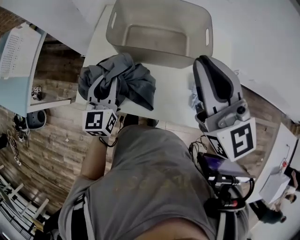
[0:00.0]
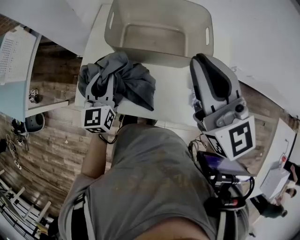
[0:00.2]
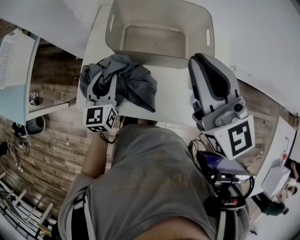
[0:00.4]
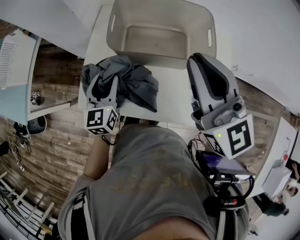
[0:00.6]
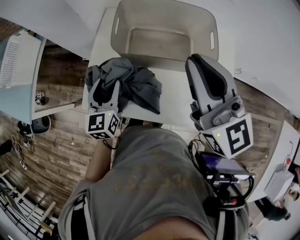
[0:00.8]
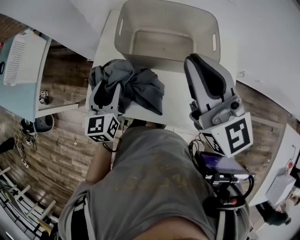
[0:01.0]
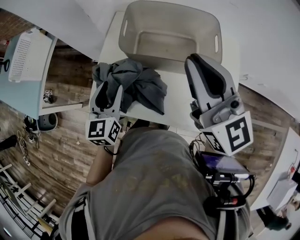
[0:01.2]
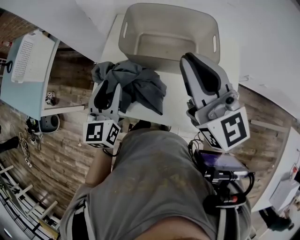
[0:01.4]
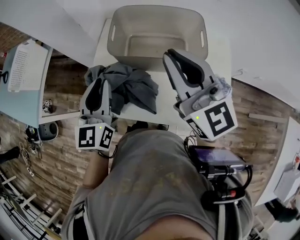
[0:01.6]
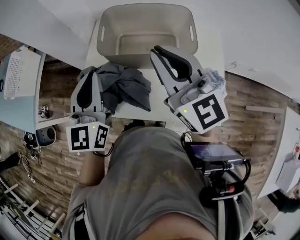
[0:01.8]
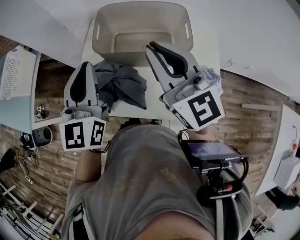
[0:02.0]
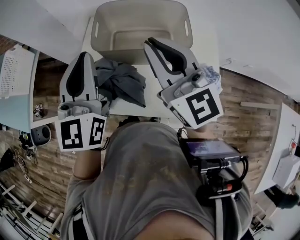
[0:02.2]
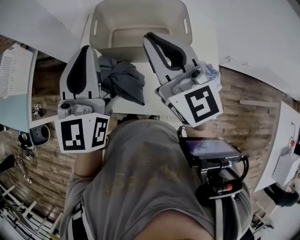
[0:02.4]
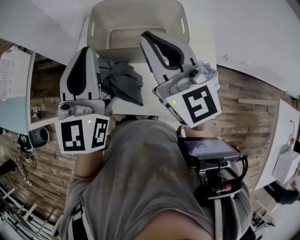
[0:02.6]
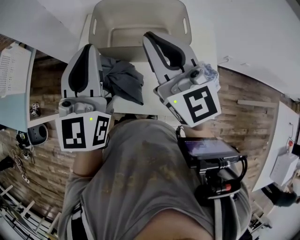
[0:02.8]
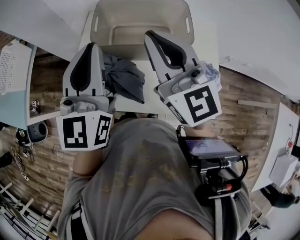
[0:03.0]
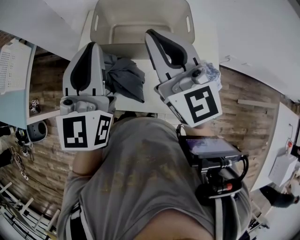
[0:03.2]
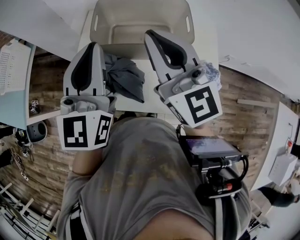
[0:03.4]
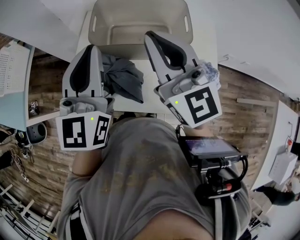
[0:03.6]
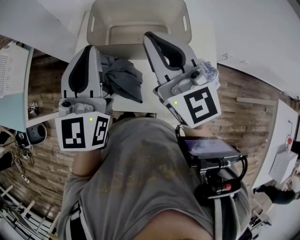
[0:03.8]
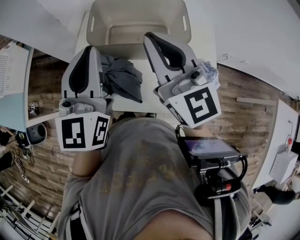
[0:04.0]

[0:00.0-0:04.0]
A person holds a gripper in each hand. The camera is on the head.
0:00.0 to 0:01.4: The left gripper heads upward, covering approximately 5 cm.
0:01.4 to 0:02.6: The left gripper shifts some 15 cm upward and to the right, and closes its fingers.
0:02.6 to 0:04.0: There are only small adjustments of the grippers.

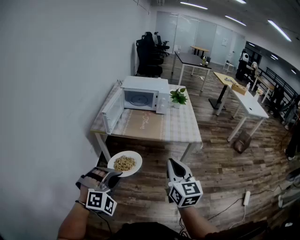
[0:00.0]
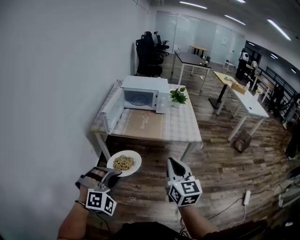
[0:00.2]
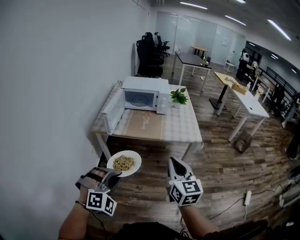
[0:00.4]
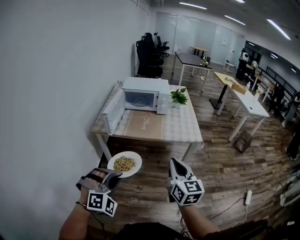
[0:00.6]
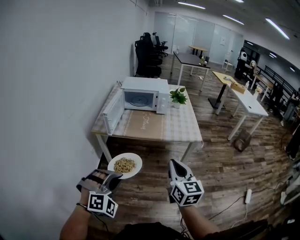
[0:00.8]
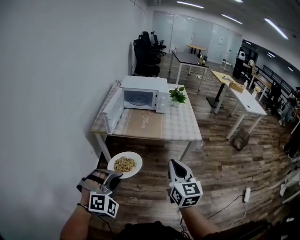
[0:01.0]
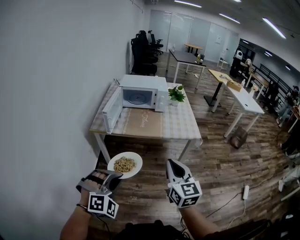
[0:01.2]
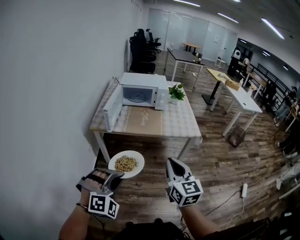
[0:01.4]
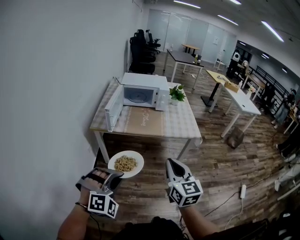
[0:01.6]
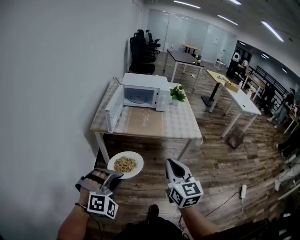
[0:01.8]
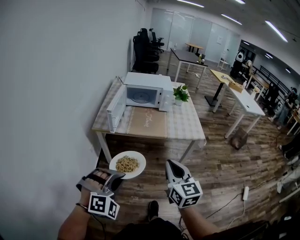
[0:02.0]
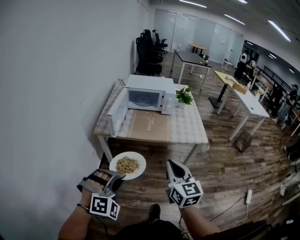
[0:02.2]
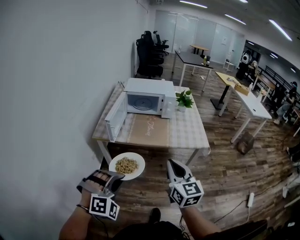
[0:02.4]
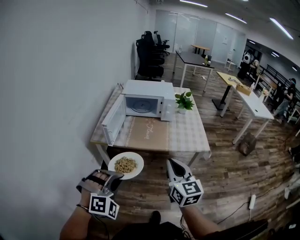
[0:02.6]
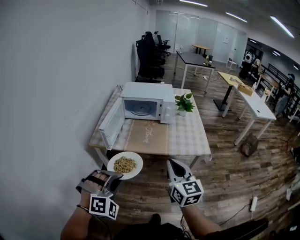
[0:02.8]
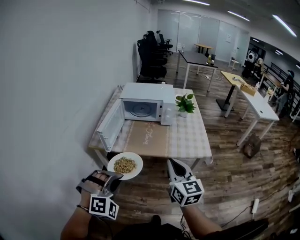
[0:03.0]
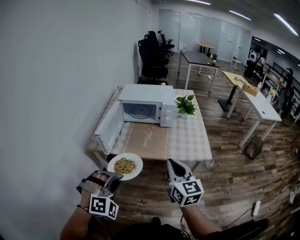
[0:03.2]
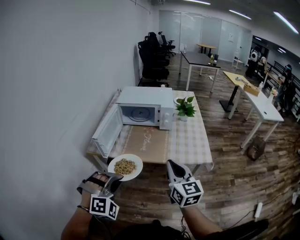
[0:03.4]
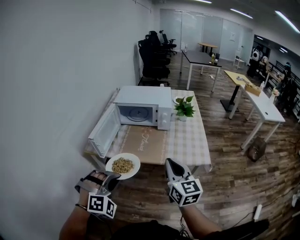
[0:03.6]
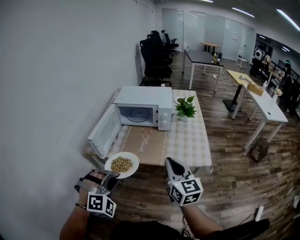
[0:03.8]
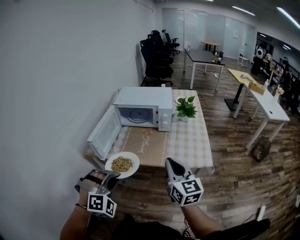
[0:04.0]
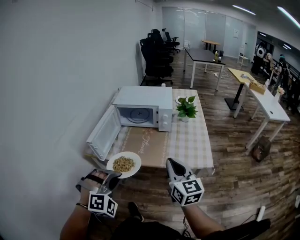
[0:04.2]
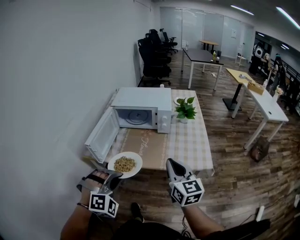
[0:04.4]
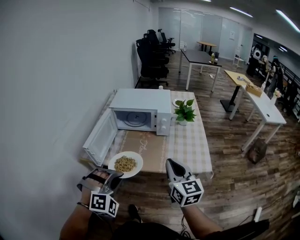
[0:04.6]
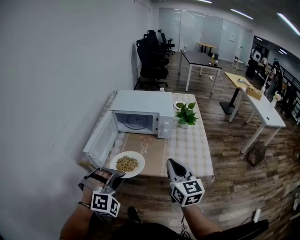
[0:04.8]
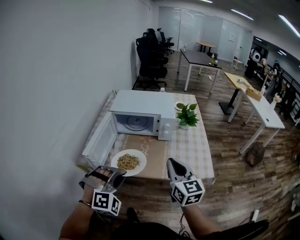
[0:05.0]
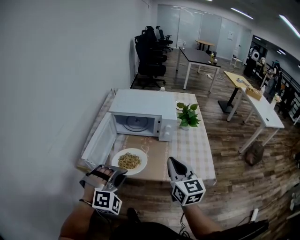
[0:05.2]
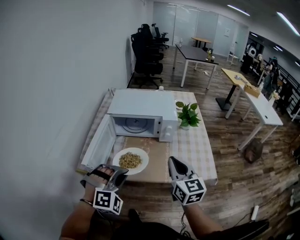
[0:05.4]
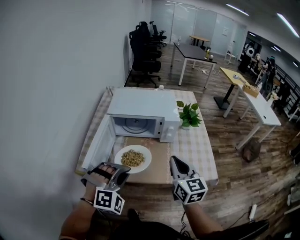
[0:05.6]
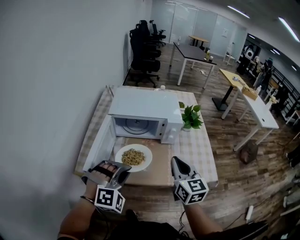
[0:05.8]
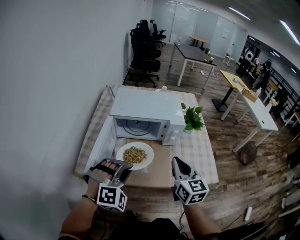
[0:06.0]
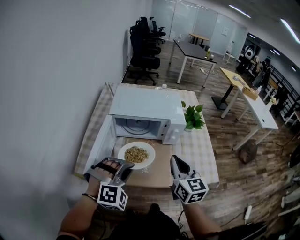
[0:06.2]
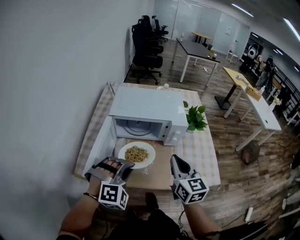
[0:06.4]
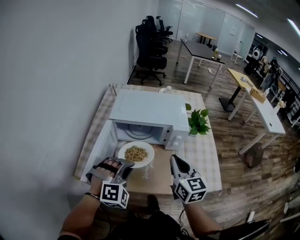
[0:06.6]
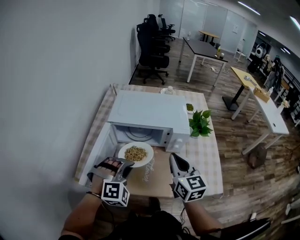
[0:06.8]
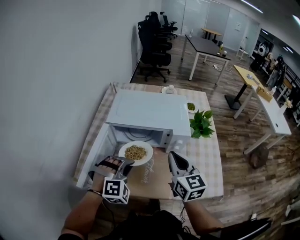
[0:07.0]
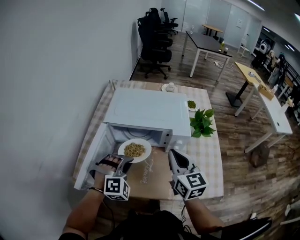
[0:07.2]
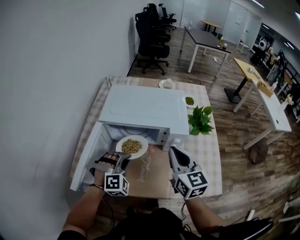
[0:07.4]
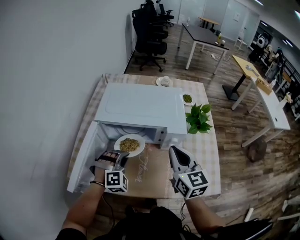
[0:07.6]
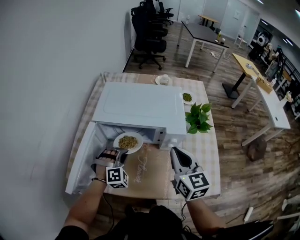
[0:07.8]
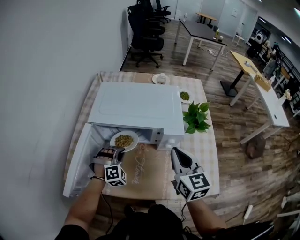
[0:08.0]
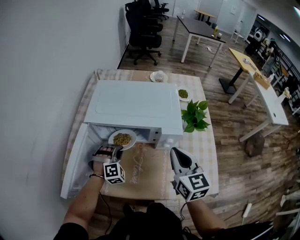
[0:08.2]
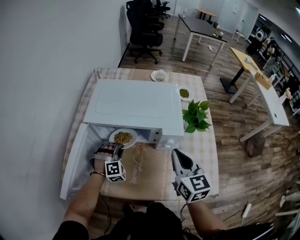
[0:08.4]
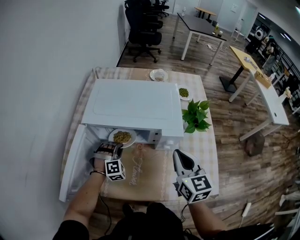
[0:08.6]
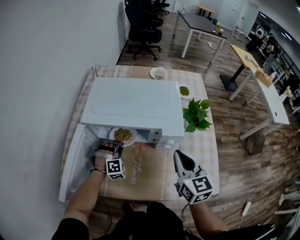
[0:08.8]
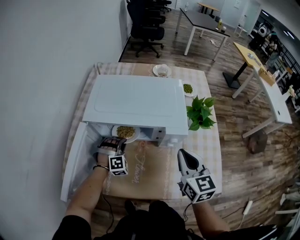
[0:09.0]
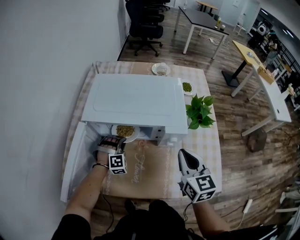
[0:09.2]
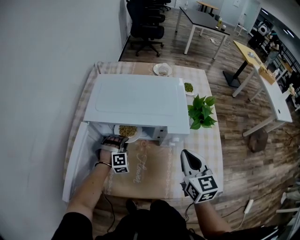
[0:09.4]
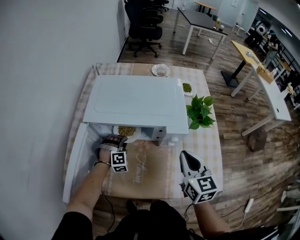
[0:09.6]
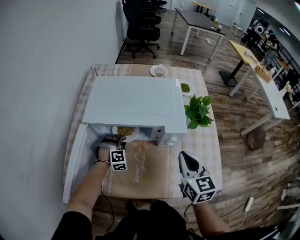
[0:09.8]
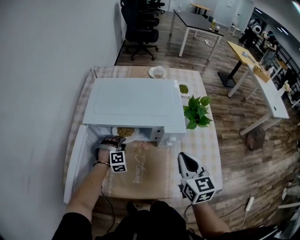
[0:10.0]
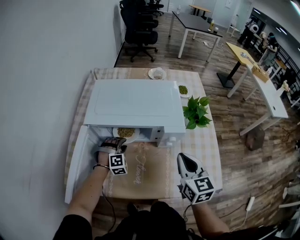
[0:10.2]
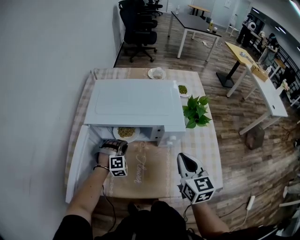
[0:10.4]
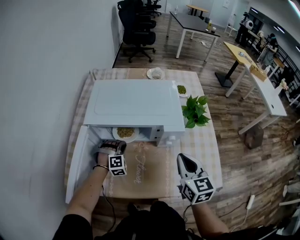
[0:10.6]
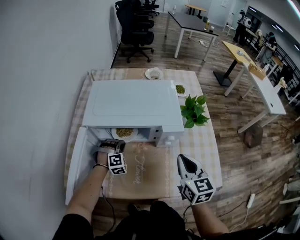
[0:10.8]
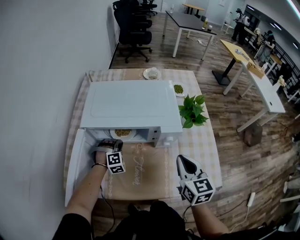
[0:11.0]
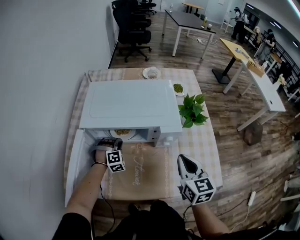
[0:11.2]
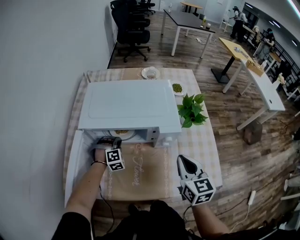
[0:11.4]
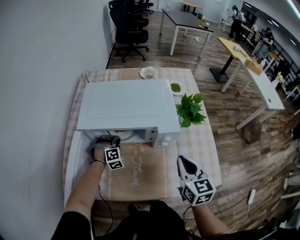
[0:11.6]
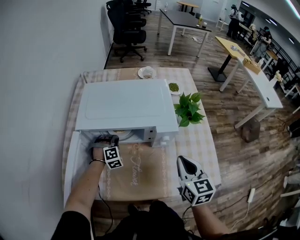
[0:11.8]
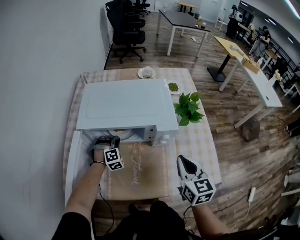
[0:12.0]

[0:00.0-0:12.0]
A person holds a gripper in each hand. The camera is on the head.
0:00.0 to 0:01.6: The grippers both shift to the left by about 5 cm.
0:01.6 to 0:03.0: The two grippers go some 20 cm forward.
0:03.0 to 0:04.4: The grippers both shift forward and to the right by roughly 15 cm.
0:04.4 to 0:06.0: The right gripper moves forward and to the left, about 20 cm. Meanwhile the left gripper is displaced forward by about 20 cm.
0:06.0 to 0:07.6: The right gripper moves forward, roughly 15 cm; the left gripper is displaced forward and downward by some 25 cm.
0:07.6 to 0:09.0: The left gripper travels downward and forward by some 15 cm, while the right gripper goes about 5 cm to the right.
0:09.0 to 0:10.4: The left gripper opens, then closes once more.
0:10.4 to 0:12.0: The grippers make only small movements.

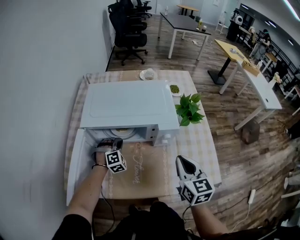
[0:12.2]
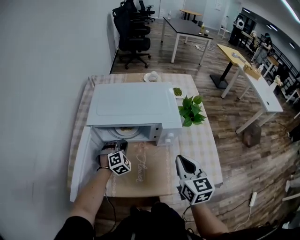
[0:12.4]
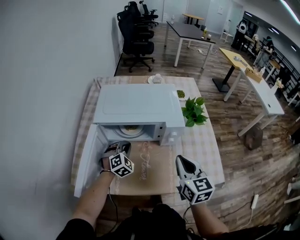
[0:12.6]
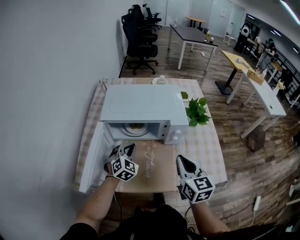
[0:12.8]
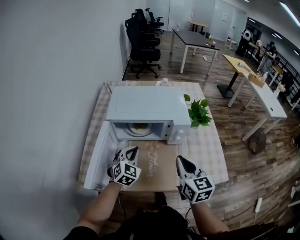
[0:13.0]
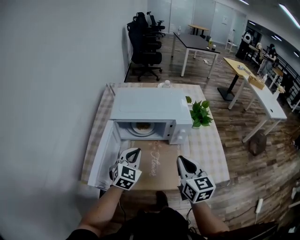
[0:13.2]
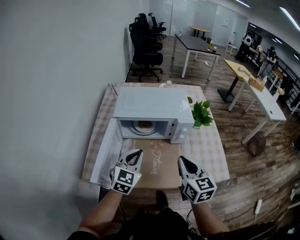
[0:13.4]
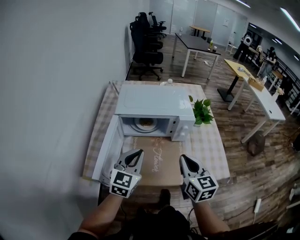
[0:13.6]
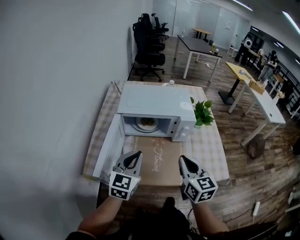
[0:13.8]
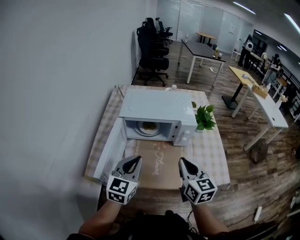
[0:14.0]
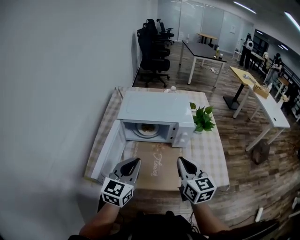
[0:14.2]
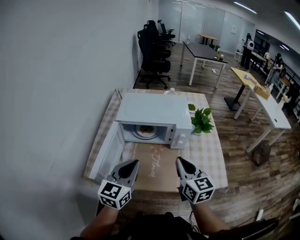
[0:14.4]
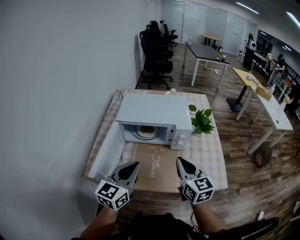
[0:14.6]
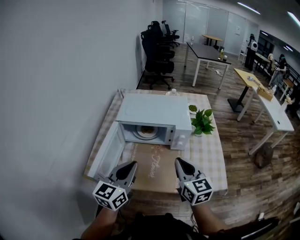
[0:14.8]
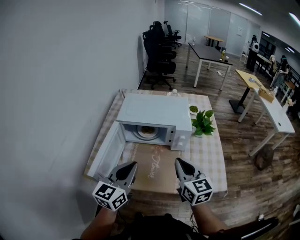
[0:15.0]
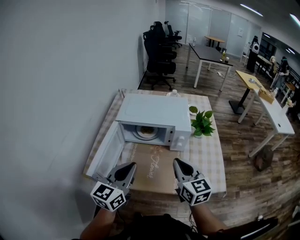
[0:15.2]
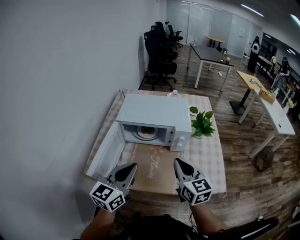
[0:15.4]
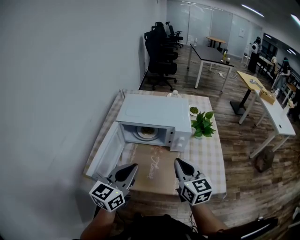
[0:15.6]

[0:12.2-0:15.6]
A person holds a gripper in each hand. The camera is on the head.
0:12.2 to 0:13.8: The left gripper is displaced upward and backward by approximately 30 cm, and twists some 60 degrees counterclockwise, seen from behind. Meanwhile the right gripper goes some 15 cm backward, to the left and upward.
0:13.8 to 0:15.6: The left gripper shifts about 10 cm upward and backward.

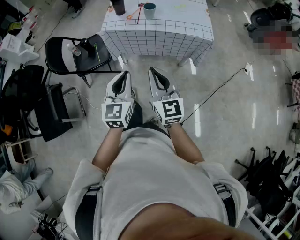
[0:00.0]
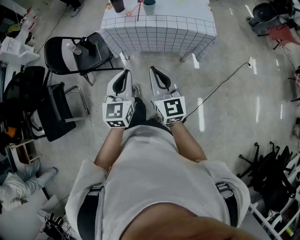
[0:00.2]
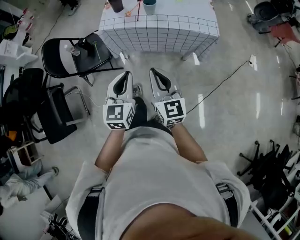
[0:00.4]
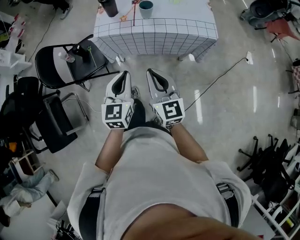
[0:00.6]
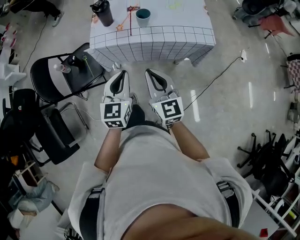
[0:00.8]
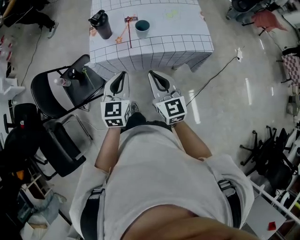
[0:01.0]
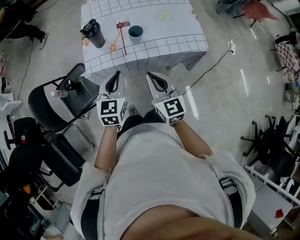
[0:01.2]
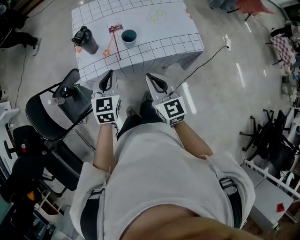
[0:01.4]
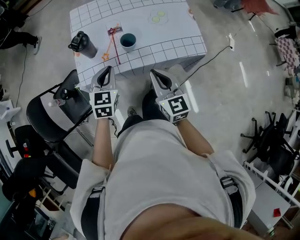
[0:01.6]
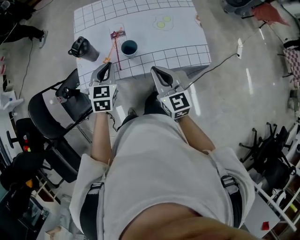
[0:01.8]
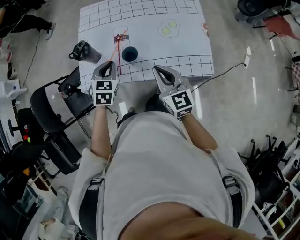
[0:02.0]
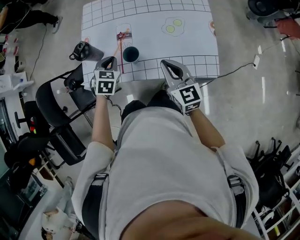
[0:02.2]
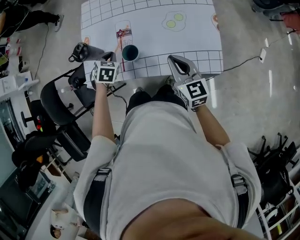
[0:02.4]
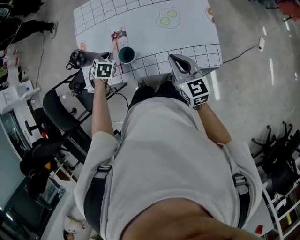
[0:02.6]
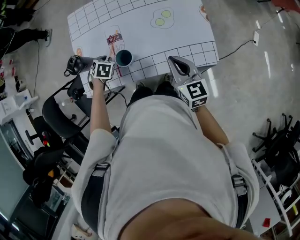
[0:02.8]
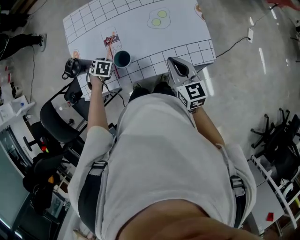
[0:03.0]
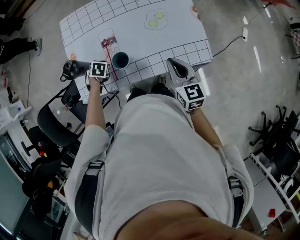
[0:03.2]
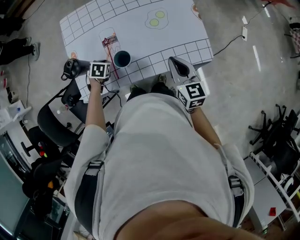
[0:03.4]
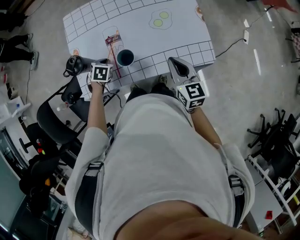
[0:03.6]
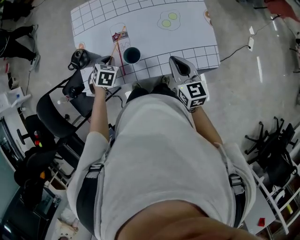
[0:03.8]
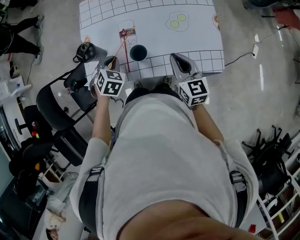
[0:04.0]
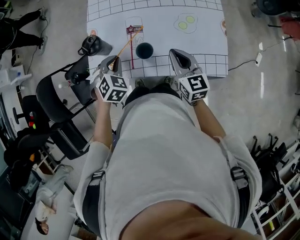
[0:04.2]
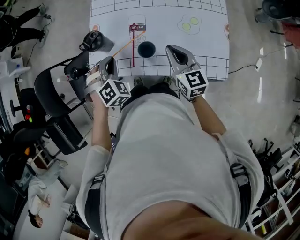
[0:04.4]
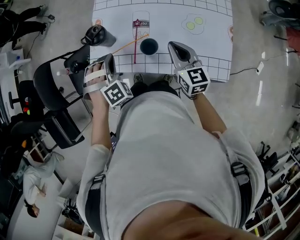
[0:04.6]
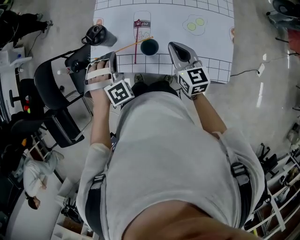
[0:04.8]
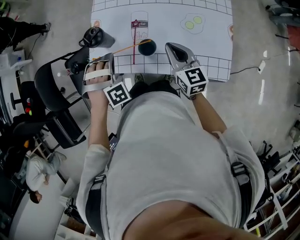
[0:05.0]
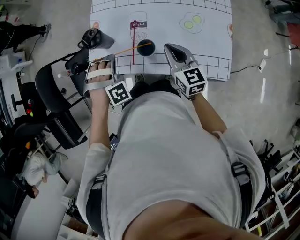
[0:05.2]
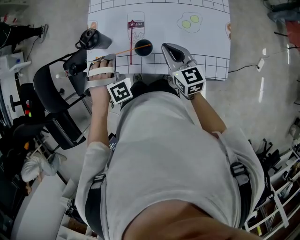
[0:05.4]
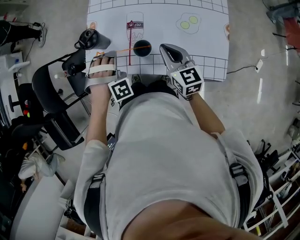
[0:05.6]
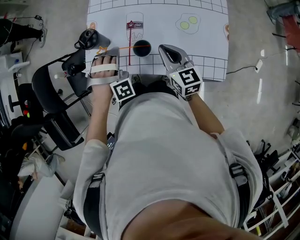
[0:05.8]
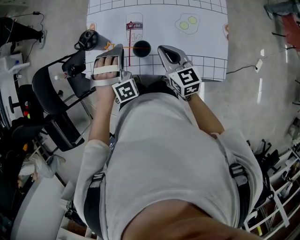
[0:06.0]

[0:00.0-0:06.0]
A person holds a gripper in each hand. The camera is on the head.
0:00.0 to 0:01.6: Both grippers move forward, some 40 cm. The left gripper turns by approximately 20 degrees.
0:01.6 to 0:03.0: The left gripper goes approximately 25 cm downward and forward, and points its fingers about 40 degrees further downward, while the right gripper goes about 20 cm to the right and forward.
0:03.0 to 0:04.4: The left gripper goes roughly 15 cm upward, and turns by approximately 40 degrees. Meanwhile the right gripper ends up some 15 cm from where it was.
0:04.4 to 0:06.0: The left gripper shifts approximately 10 cm to the right, rotates about 30 degrees, and opens.